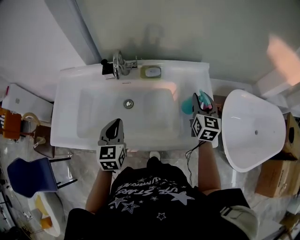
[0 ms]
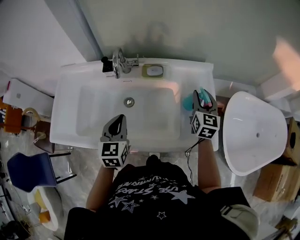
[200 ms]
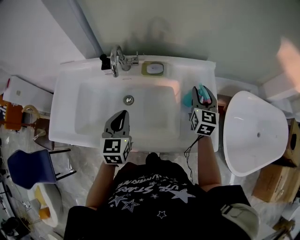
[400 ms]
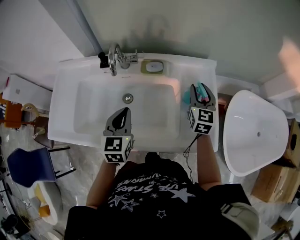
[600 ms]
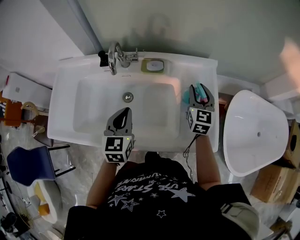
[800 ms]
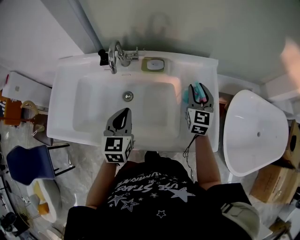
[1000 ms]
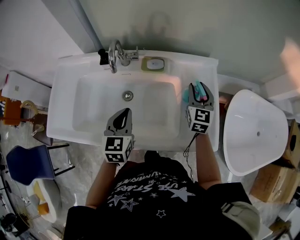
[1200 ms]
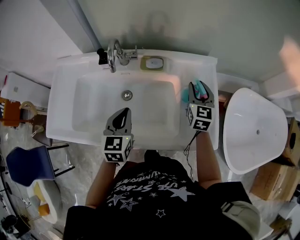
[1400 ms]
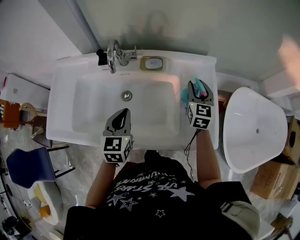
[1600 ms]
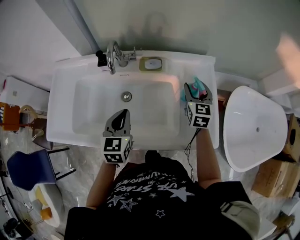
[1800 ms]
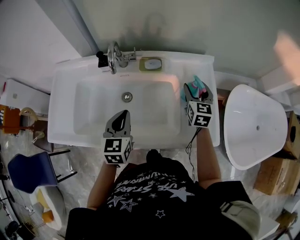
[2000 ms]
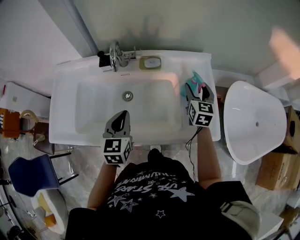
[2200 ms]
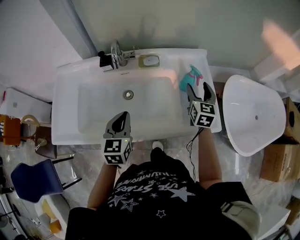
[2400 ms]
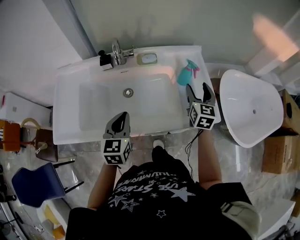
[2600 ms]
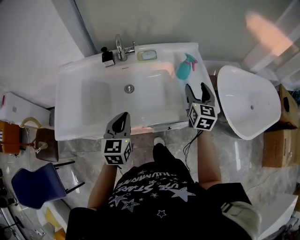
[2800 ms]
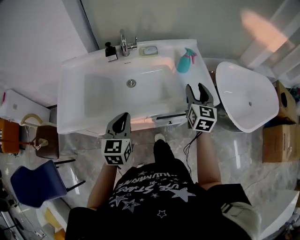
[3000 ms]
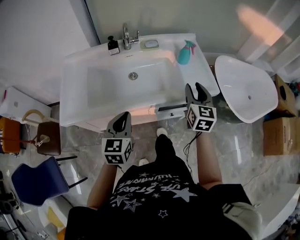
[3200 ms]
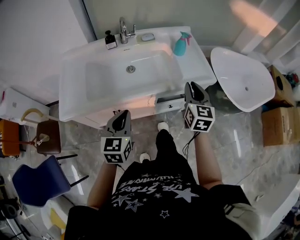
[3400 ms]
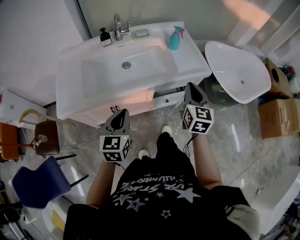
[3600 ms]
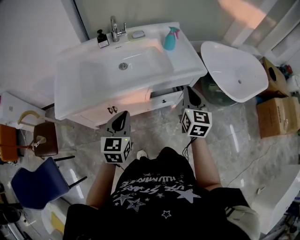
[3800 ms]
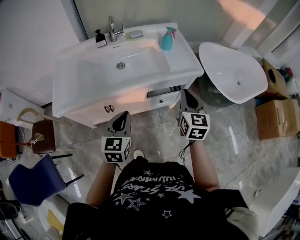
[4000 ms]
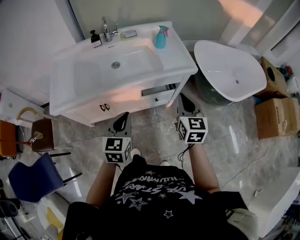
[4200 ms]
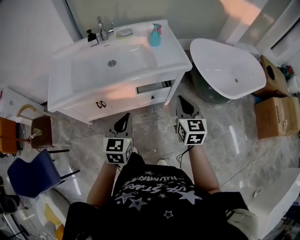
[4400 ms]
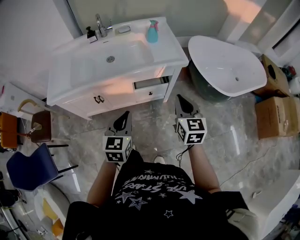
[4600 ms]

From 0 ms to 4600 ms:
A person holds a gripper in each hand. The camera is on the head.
From 0 ms to 1600 ms: The right gripper goes roughly 5 cm forward; the left gripper moves about 5 cm.
From 1600 ms to 3000 ms: Both grippers travel together backward, roughly 20 cm.
From 3000 ms to 4600 ms: Both grippers travel together backward and to the right, roughly 30 cm. The right gripper closes its fingers.

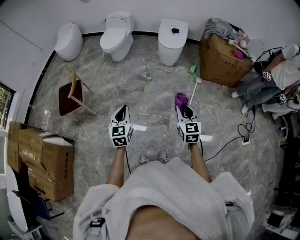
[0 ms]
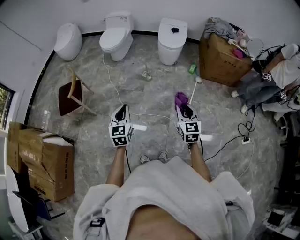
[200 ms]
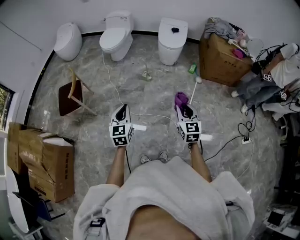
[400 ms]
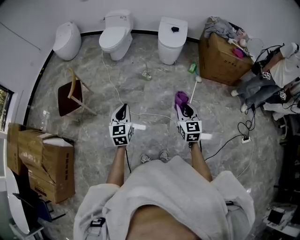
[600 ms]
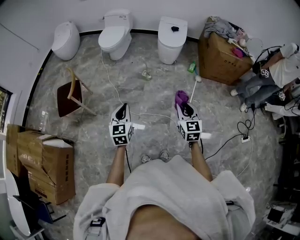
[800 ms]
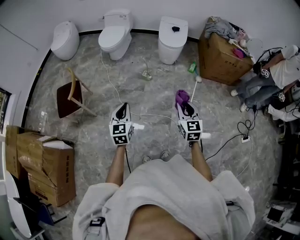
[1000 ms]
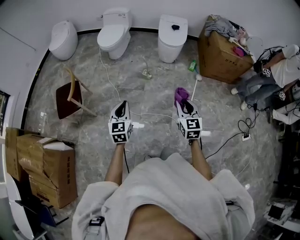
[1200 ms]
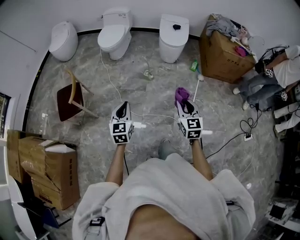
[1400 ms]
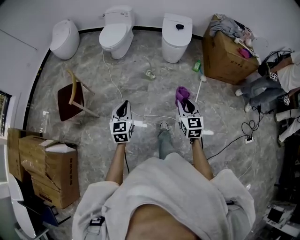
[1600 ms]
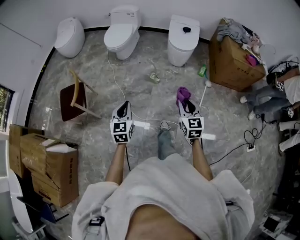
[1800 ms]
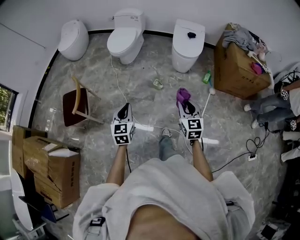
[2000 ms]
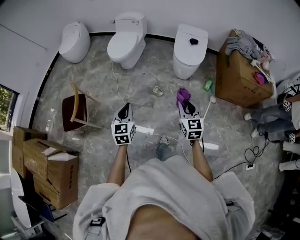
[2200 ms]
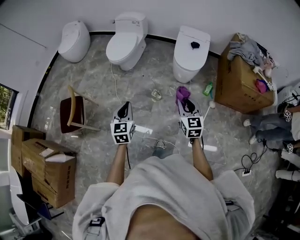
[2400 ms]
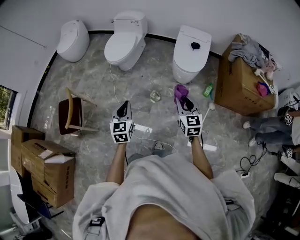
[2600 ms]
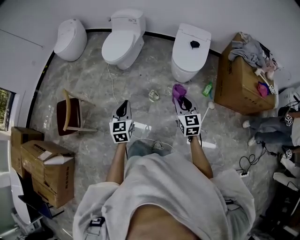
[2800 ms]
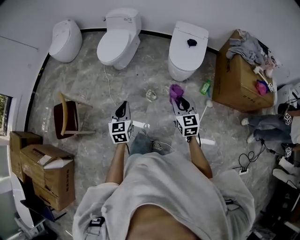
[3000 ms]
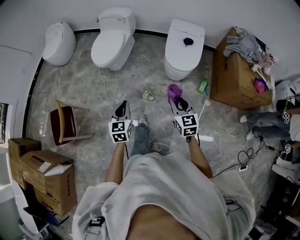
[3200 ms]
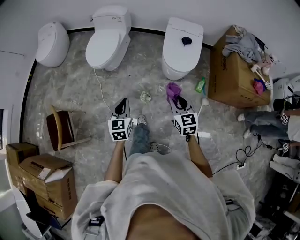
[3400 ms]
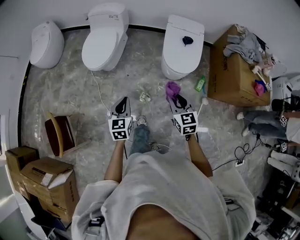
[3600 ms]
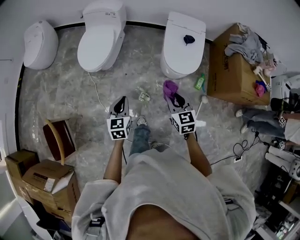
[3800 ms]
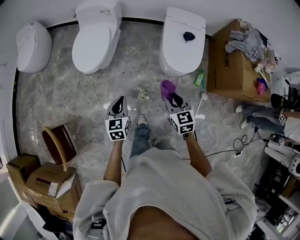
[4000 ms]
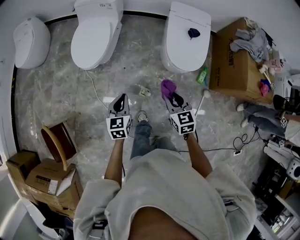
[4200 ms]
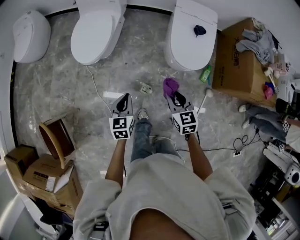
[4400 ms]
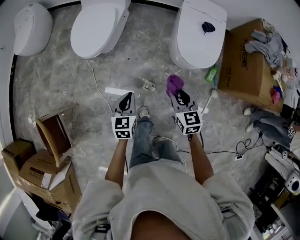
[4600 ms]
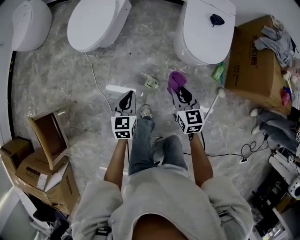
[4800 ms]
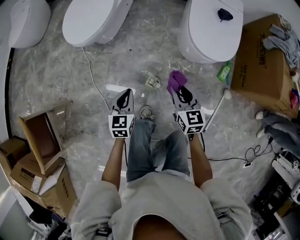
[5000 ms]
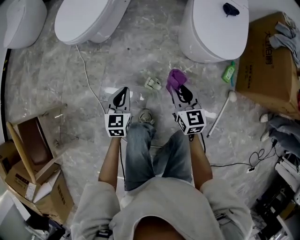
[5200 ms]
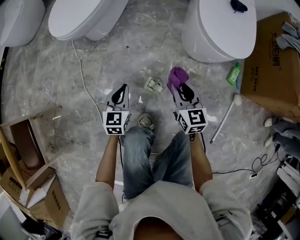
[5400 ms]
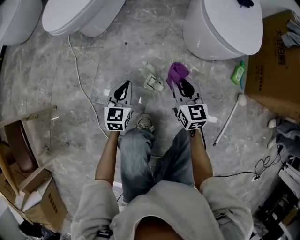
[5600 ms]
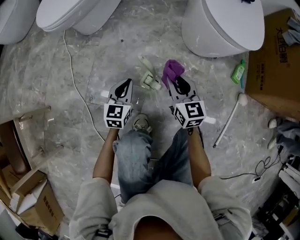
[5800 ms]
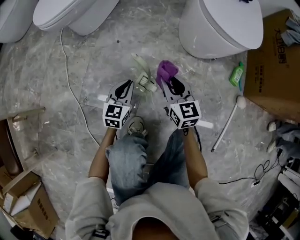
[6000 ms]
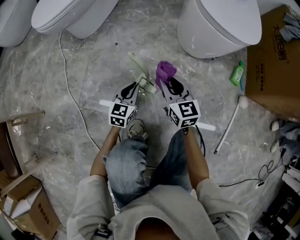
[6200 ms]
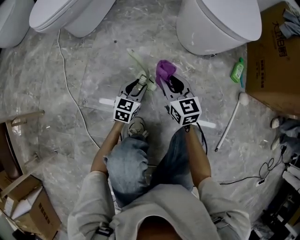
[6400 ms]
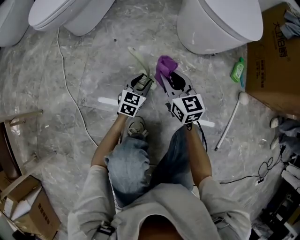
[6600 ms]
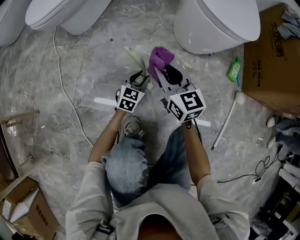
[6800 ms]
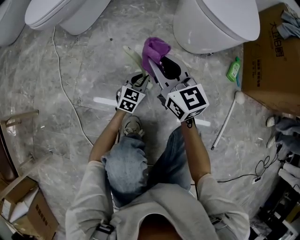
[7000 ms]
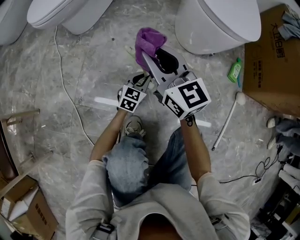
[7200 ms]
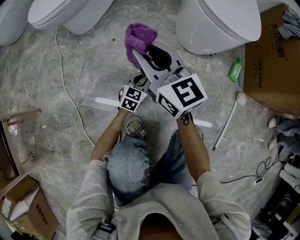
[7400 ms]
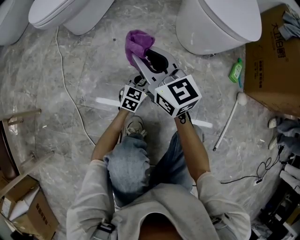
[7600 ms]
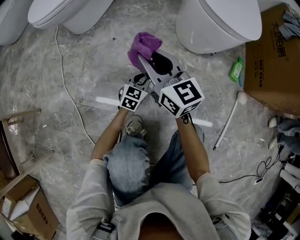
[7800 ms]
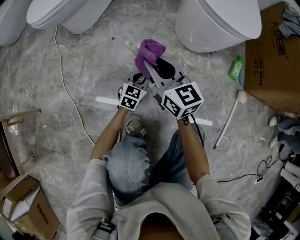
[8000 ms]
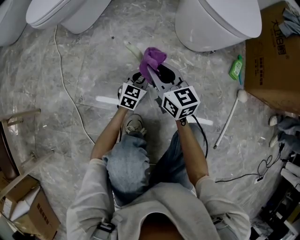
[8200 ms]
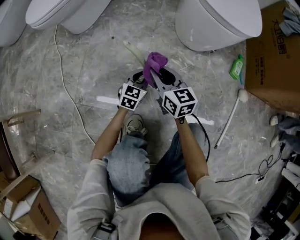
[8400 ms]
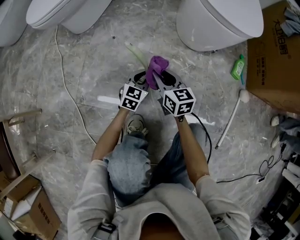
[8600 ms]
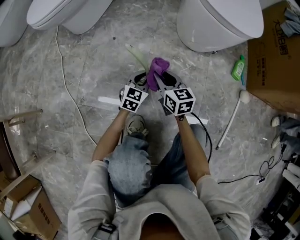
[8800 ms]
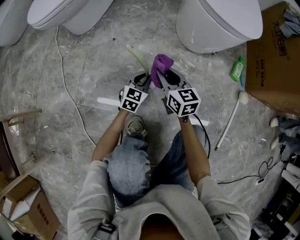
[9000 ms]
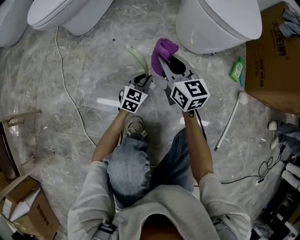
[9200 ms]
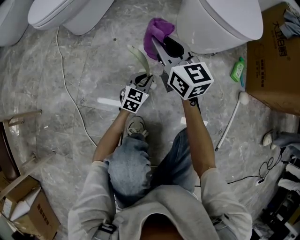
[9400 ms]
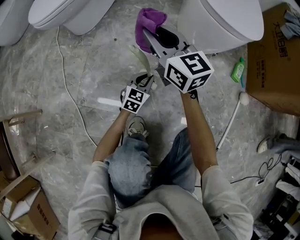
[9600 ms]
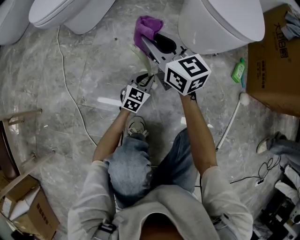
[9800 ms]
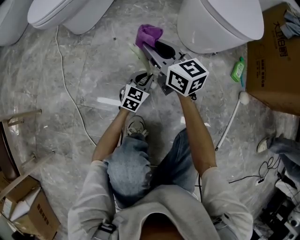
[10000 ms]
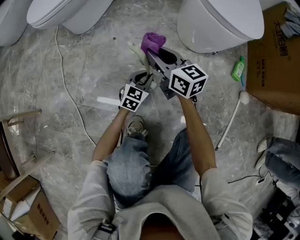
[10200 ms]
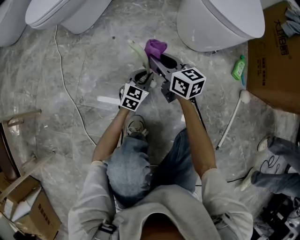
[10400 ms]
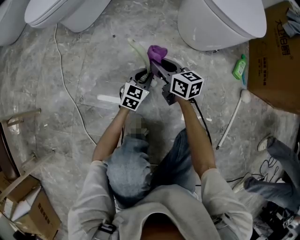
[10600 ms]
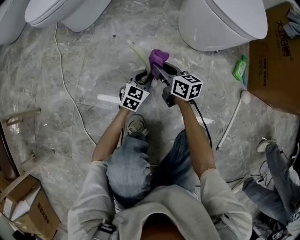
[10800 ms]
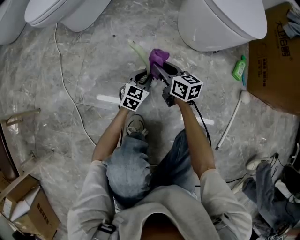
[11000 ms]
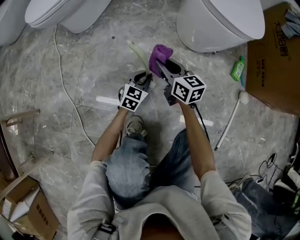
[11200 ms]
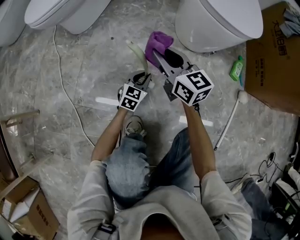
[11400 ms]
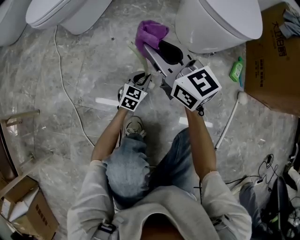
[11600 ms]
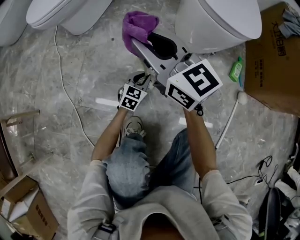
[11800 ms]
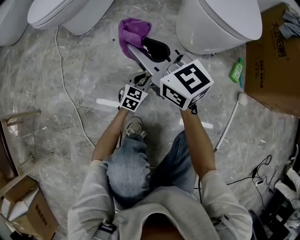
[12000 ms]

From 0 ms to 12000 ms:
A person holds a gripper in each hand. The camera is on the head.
From 0 ms to 1600 ms: The two grippers go some 10 cm forward and to the left.
From 1600 ms to 3000 ms: The grippers both shift forward by some 35 cm.
From 3000 ms to 4400 ms: The two grippers go about 25 cm forward and downward.
From 4400 ms to 6000 ms: Both grippers move downward, roughly 40 cm.
From 6000 ms to 7600 ms: The left gripper moves to the right and downward, approximately 10 cm, and opens and closes again. Meanwhile the right gripper heads upward and to the left, covering some 15 cm.
From 7600 ms to 9000 ms: The right gripper shifts some 20 cm downward and to the right, and swivels roughly 20 degrees.
From 9000 ms to 10400 ms: The right gripper travels upward and back again, some 15 cm each way.
From 10400 ms to 12000 ms: The right gripper heads upward, covering approximately 15 cm, and changes its angle by some 30 degrees.

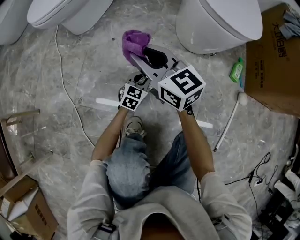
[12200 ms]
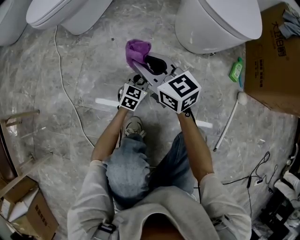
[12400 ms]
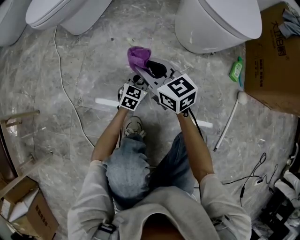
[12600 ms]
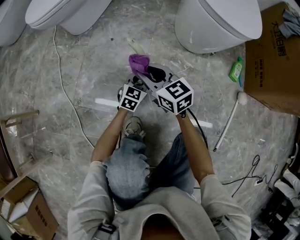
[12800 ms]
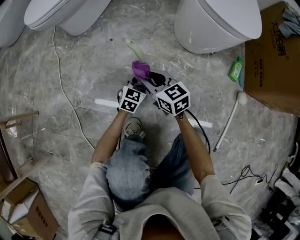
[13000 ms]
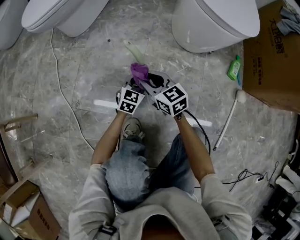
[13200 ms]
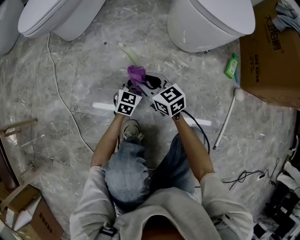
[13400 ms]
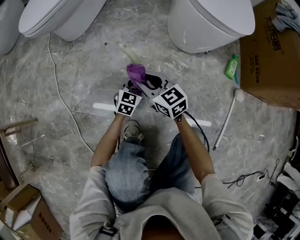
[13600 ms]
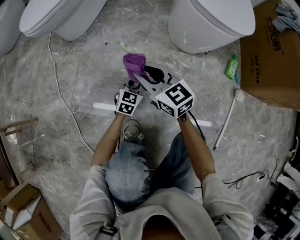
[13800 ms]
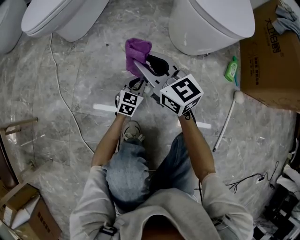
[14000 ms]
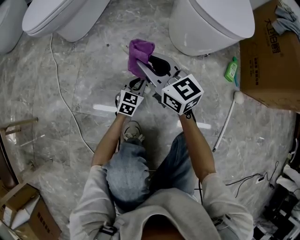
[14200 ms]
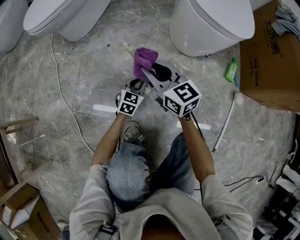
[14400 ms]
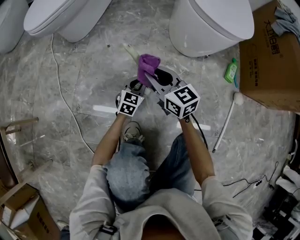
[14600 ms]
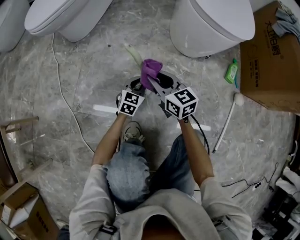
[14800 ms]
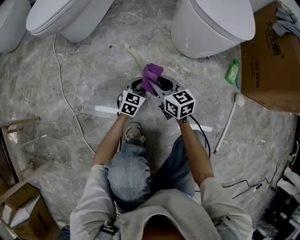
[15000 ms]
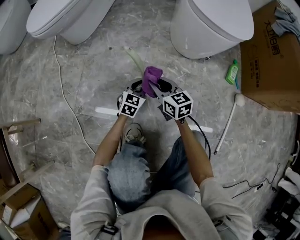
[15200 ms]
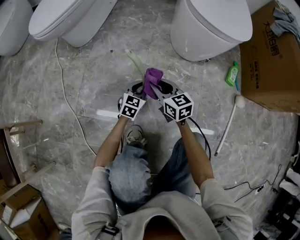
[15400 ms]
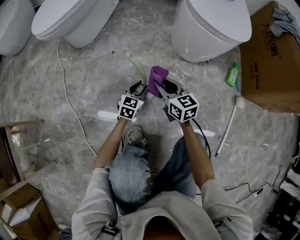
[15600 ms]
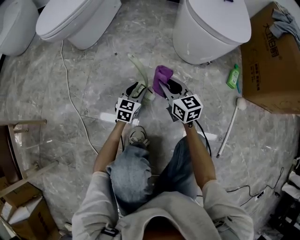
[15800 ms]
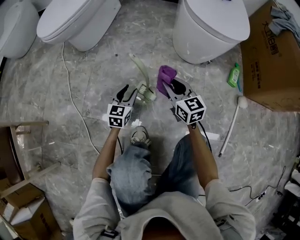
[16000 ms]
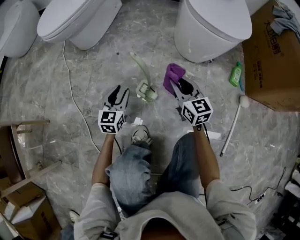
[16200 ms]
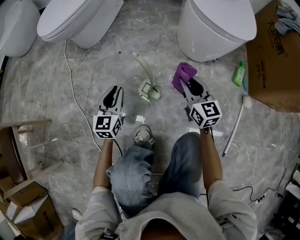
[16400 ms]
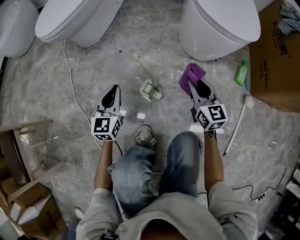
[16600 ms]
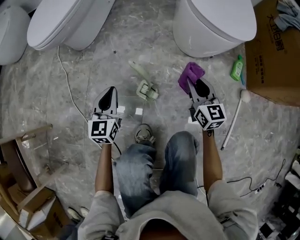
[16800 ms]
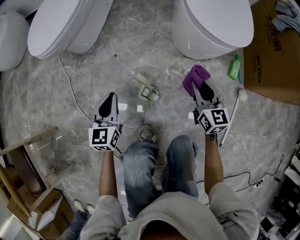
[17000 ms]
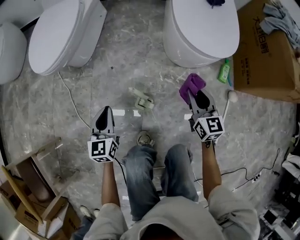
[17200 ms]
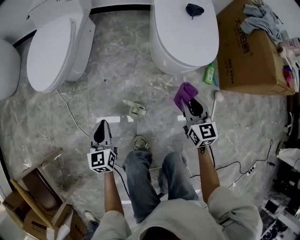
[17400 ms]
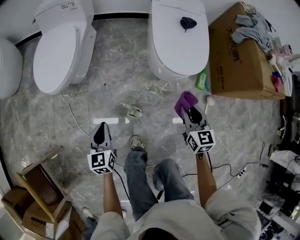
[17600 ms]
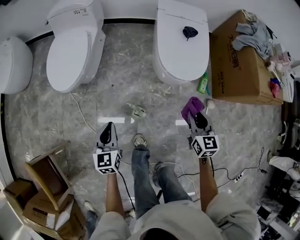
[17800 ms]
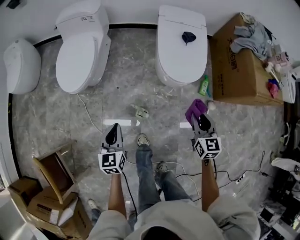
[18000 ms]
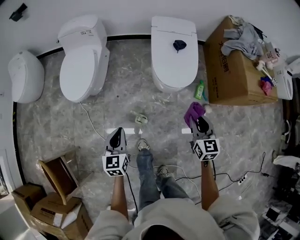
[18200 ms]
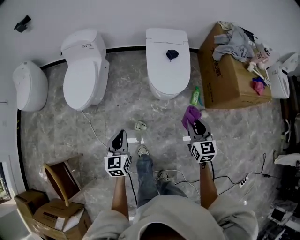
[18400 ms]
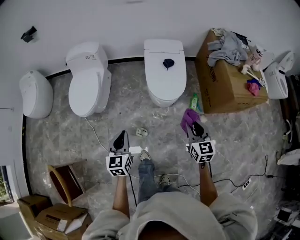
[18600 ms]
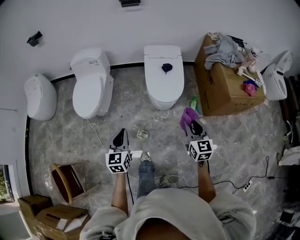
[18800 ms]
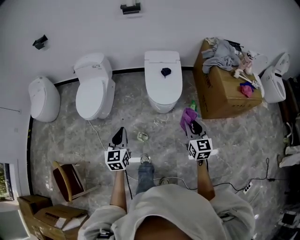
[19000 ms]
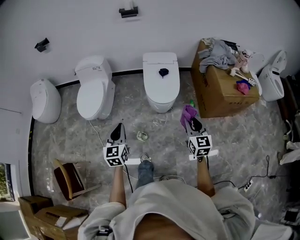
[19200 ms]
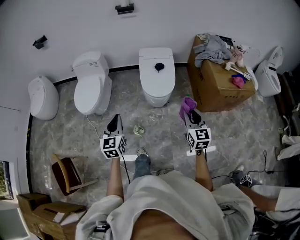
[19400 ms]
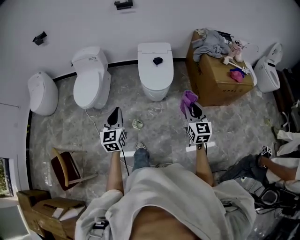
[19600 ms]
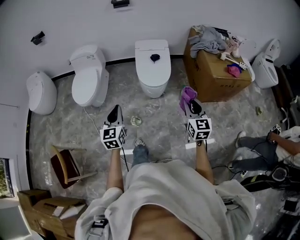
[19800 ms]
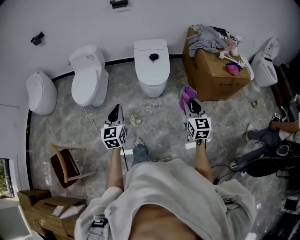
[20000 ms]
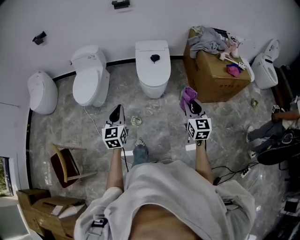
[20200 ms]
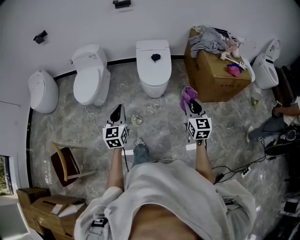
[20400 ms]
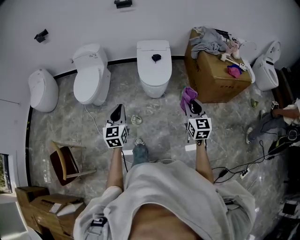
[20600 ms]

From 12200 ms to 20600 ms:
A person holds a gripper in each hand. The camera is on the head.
From 12200 ms to 13600 ms: The right gripper moves downward, roughly 15 cm.
From 13600 ms to 15000 ms: The right gripper goes upward and returns, some 15 cm each way.
From 15000 ms to 16400 ms: The right gripper shifts some 10 cm to the right and upward, while the left gripper travels to the left and upward by roughly 20 cm, and swivels about 20 degrees.
From 16400 ms to 17800 ms: Both grippers travel together upward, approximately 35 cm. The right gripper changes its angle by about 20 degrees.
From 17800 ms to 19200 ms: The left gripper travels upward by some 30 cm. Meanwhile the right gripper is displaced upward and backward by some 30 cm.
From 19200 ms to 20600 ms: Both grippers travel together backward, about 5 cm.
